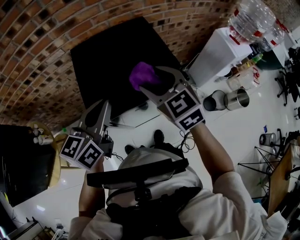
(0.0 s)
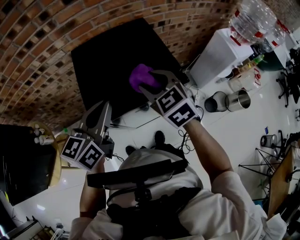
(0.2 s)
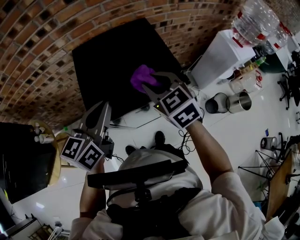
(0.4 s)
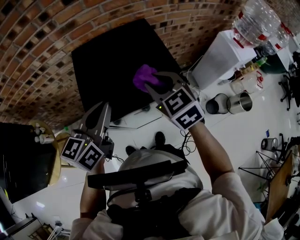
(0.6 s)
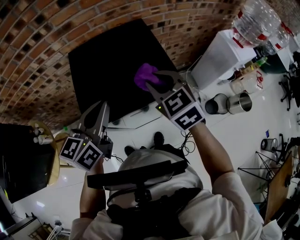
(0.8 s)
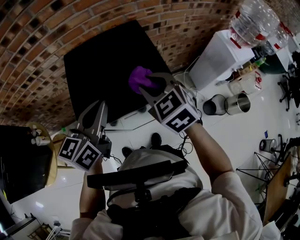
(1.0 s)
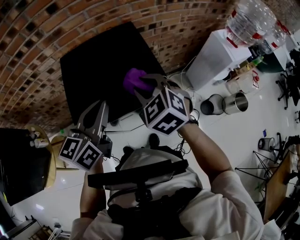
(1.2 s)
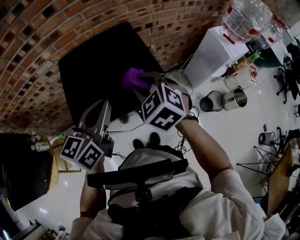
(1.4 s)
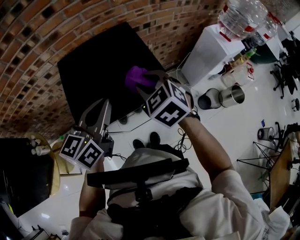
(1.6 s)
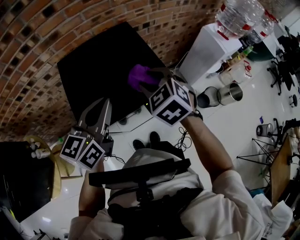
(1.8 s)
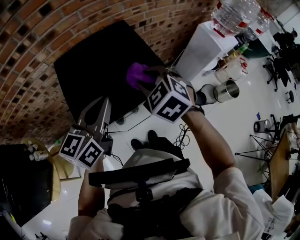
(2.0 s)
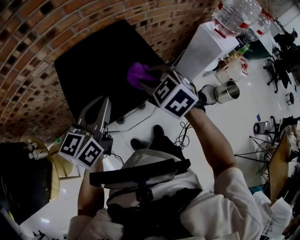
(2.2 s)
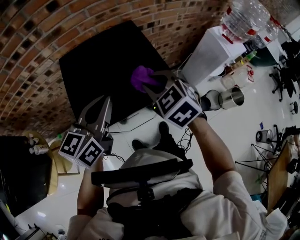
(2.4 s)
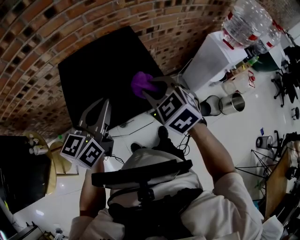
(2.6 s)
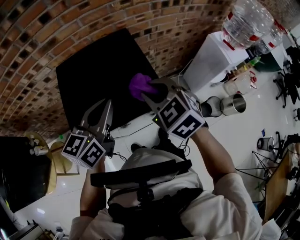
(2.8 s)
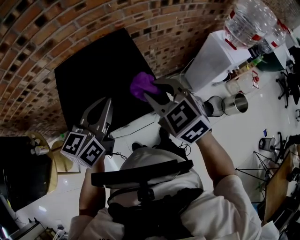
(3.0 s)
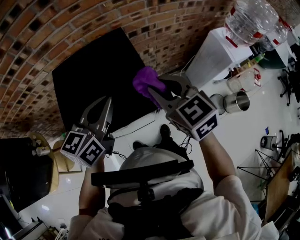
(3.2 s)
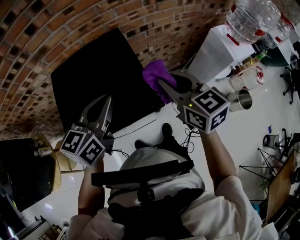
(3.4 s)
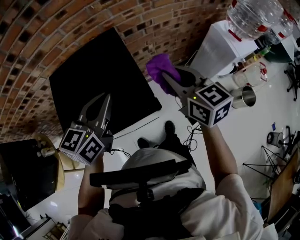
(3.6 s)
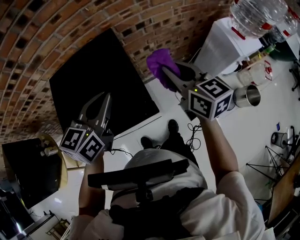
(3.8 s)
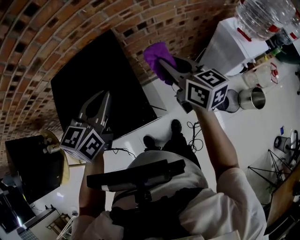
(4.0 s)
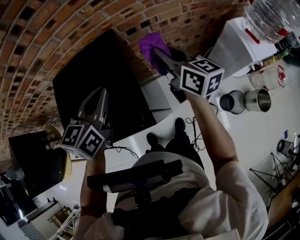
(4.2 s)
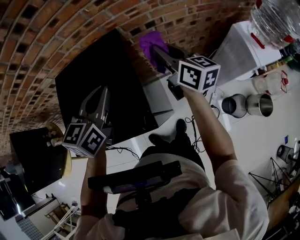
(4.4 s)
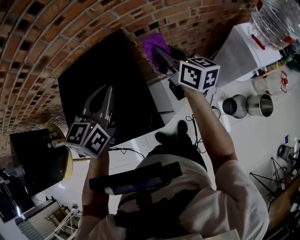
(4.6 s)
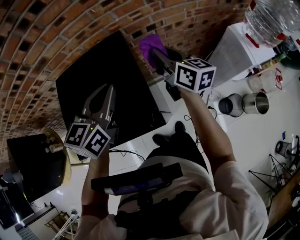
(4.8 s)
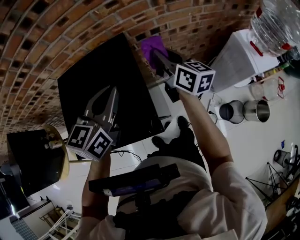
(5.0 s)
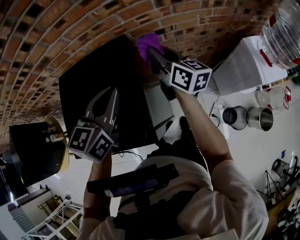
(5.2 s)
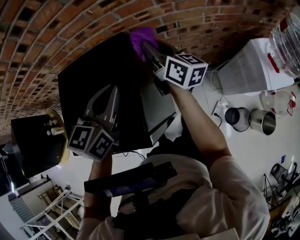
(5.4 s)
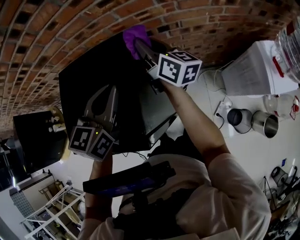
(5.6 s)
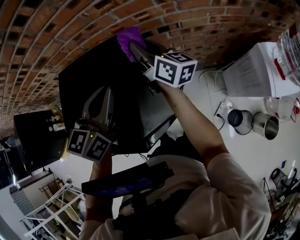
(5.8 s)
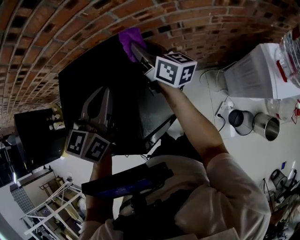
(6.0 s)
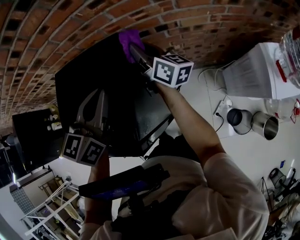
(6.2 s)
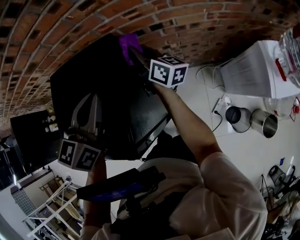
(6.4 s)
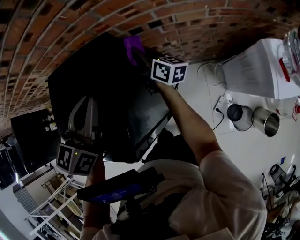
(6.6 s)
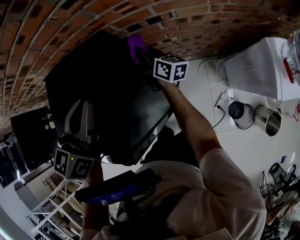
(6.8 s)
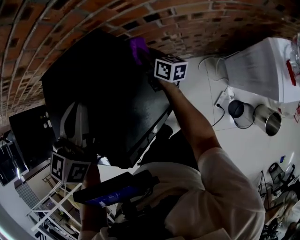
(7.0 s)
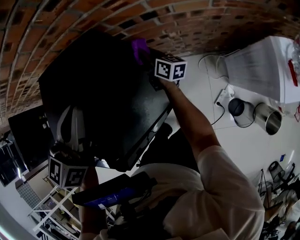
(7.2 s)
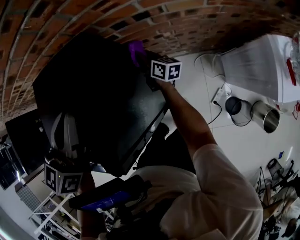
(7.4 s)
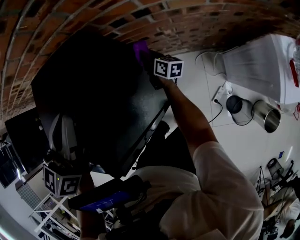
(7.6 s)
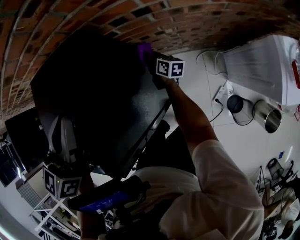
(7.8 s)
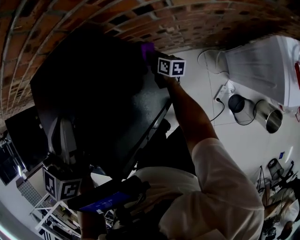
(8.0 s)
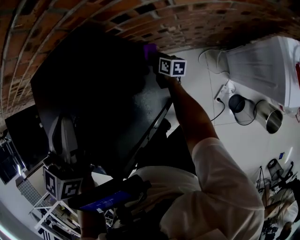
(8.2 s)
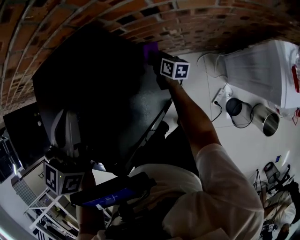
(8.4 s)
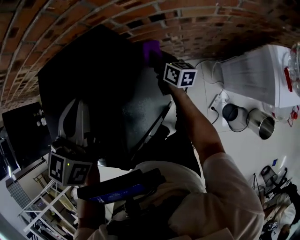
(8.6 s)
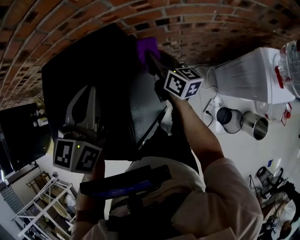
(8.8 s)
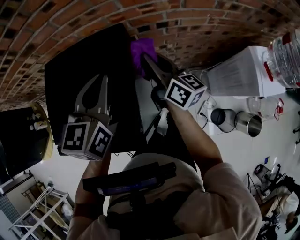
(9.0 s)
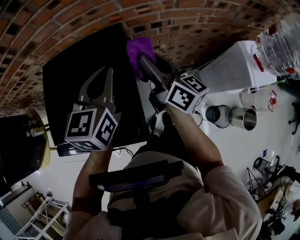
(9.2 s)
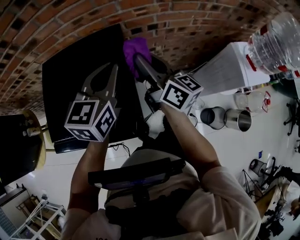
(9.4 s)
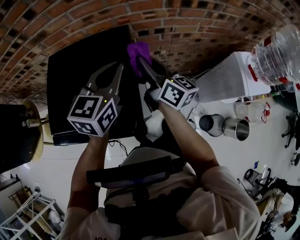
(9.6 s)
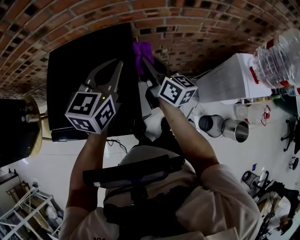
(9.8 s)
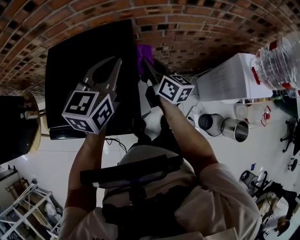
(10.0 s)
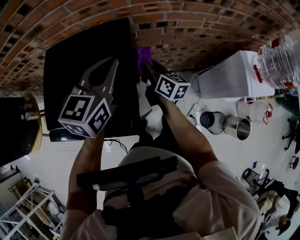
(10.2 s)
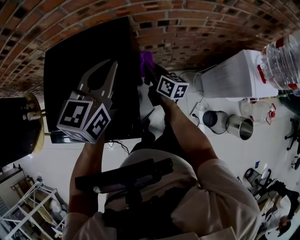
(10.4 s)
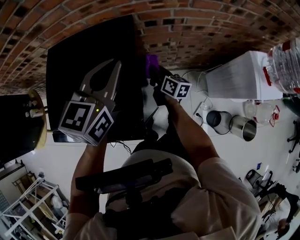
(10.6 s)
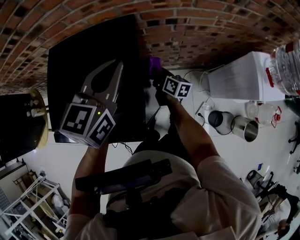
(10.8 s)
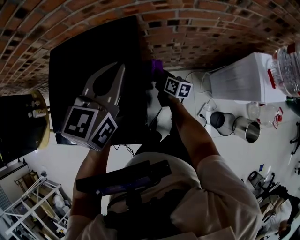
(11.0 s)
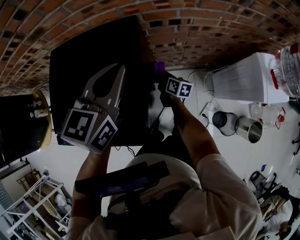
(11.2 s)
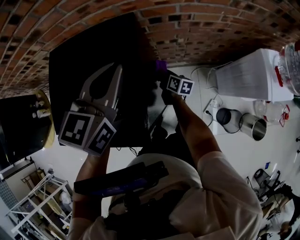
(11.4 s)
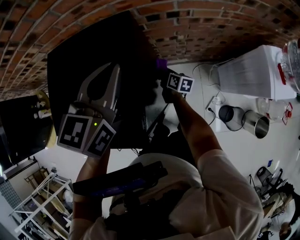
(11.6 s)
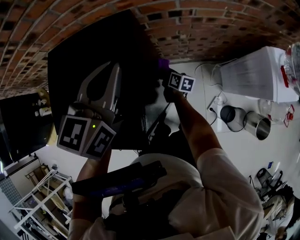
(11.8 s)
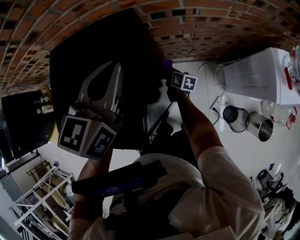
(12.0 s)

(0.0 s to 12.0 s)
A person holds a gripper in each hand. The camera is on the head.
0.0 s - 1.6 s: The right gripper shifts by some 5 cm, and closes its fingers. The left gripper shifts about 5 cm to the right.
1.6 s - 3.0 s: The left gripper moves roughly 5 cm. Meanwhile the right gripper shifts by approximately 5 cm.
3.0 s - 4.4 s: The right gripper shifts roughly 25 cm forward and to the right, and rotates around the line of its fingers by about 50 degrees, clockwise from behind. The left gripper moves forward and to the right, roughly 10 cm.
4.4 s - 6.0 s: The left gripper moves roughly 5 cm. Meanwhile the right gripper heads forward and to the left, covering about 15 cm.
6.0 s - 7.6 s: The right gripper heads downward, covering roughly 30 cm, and swivels roughly 20 degrees.
7.6 s - 9.0 s: The right gripper shifts roughly 30 cm upward, and changes its angle by approximately 20 degrees.
9.0 s - 10.4 s: The right gripper shifts roughly 15 cm downward.
10.4 s - 12.0 s: The right gripper heads downward, covering about 20 cm, and changes its angle by approximately 20 degrees.

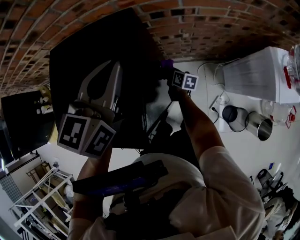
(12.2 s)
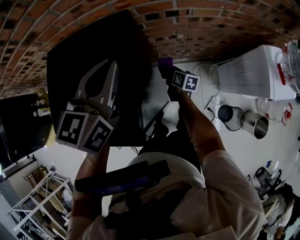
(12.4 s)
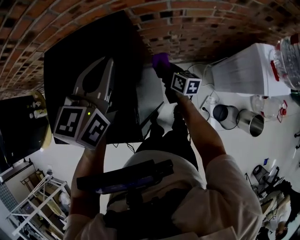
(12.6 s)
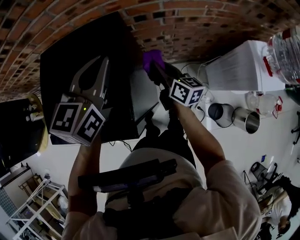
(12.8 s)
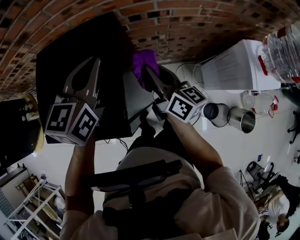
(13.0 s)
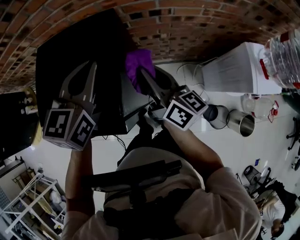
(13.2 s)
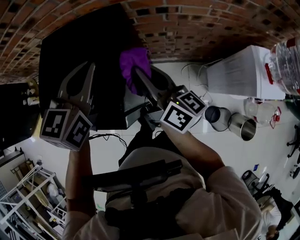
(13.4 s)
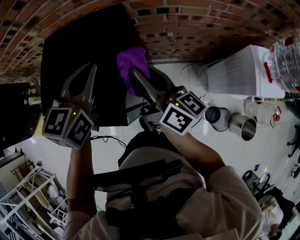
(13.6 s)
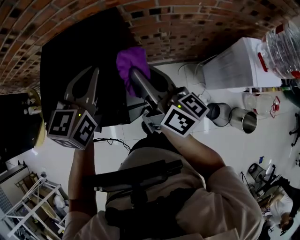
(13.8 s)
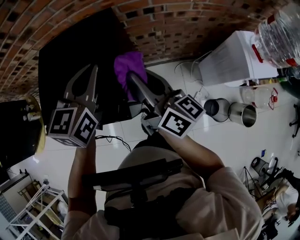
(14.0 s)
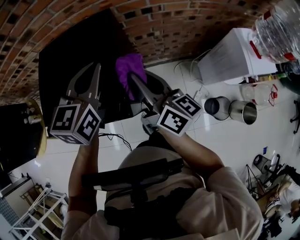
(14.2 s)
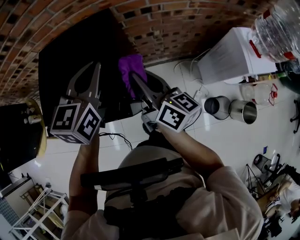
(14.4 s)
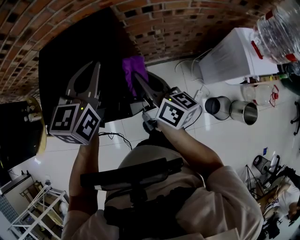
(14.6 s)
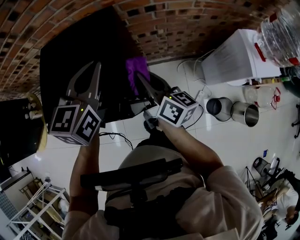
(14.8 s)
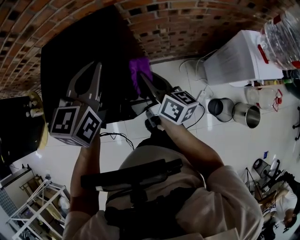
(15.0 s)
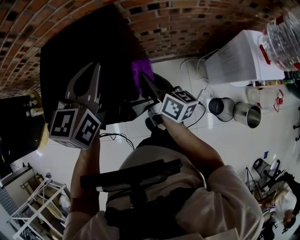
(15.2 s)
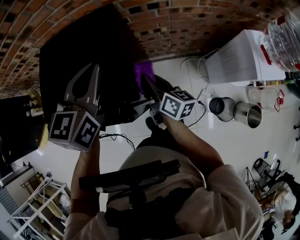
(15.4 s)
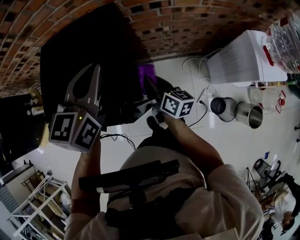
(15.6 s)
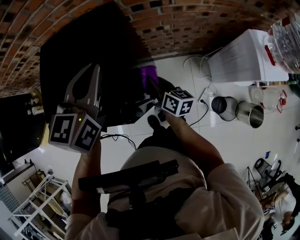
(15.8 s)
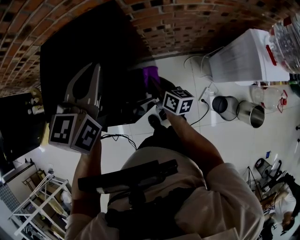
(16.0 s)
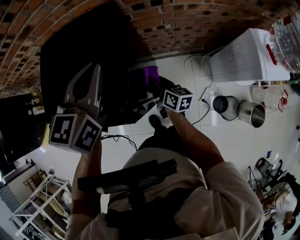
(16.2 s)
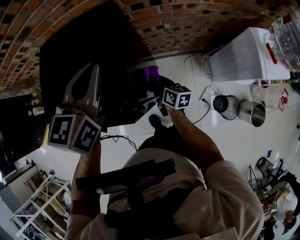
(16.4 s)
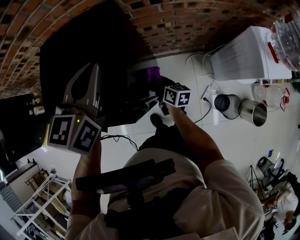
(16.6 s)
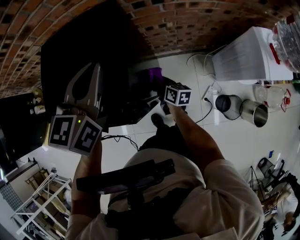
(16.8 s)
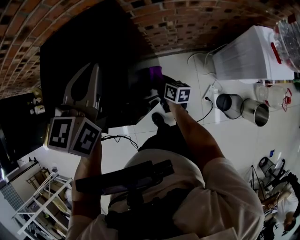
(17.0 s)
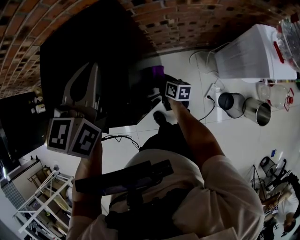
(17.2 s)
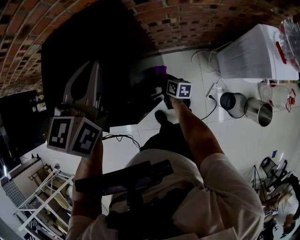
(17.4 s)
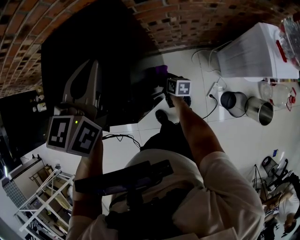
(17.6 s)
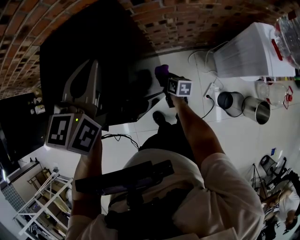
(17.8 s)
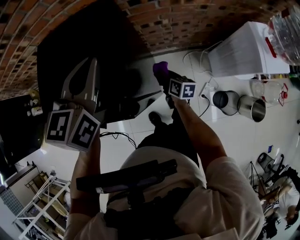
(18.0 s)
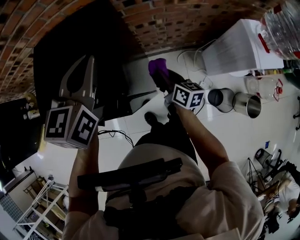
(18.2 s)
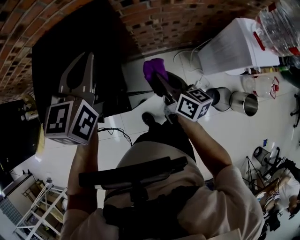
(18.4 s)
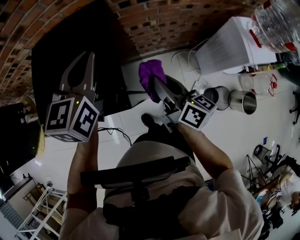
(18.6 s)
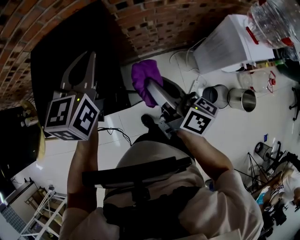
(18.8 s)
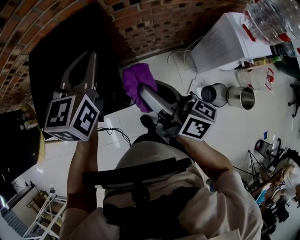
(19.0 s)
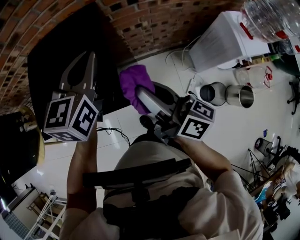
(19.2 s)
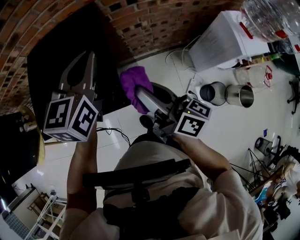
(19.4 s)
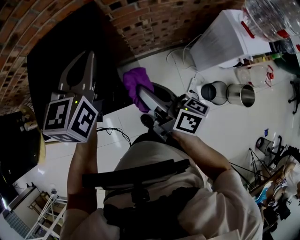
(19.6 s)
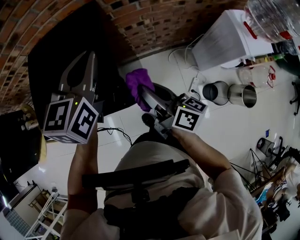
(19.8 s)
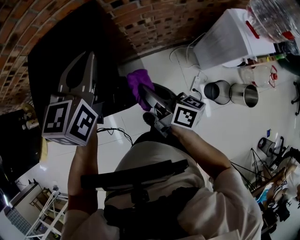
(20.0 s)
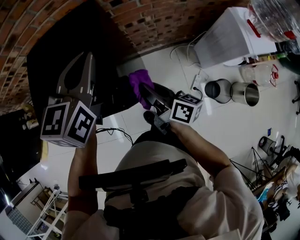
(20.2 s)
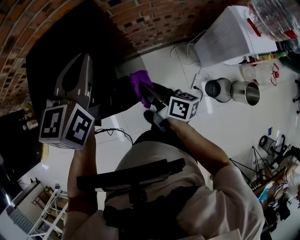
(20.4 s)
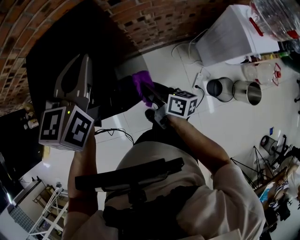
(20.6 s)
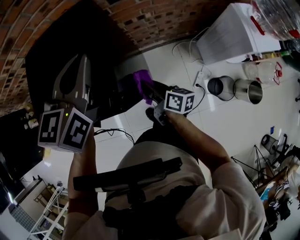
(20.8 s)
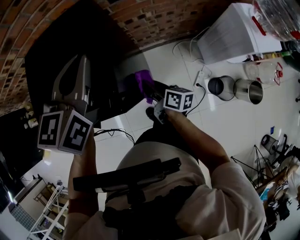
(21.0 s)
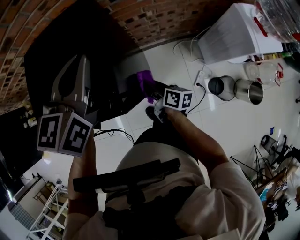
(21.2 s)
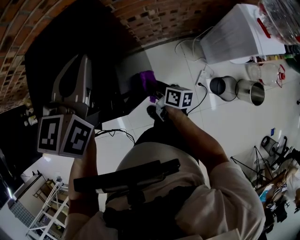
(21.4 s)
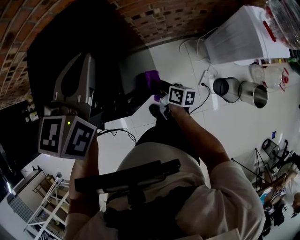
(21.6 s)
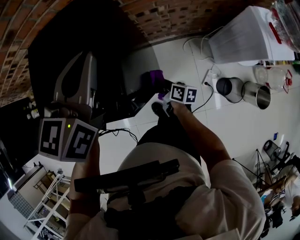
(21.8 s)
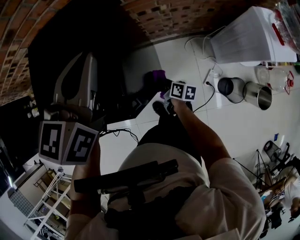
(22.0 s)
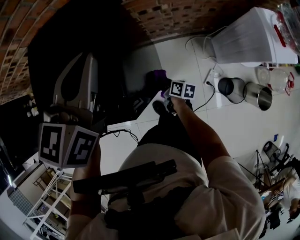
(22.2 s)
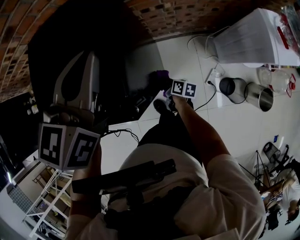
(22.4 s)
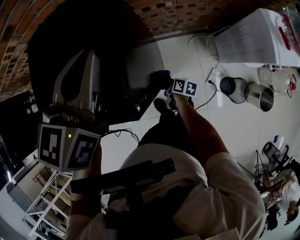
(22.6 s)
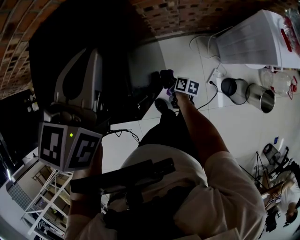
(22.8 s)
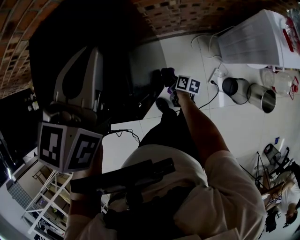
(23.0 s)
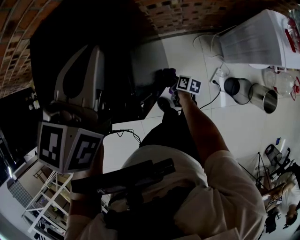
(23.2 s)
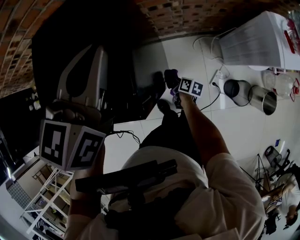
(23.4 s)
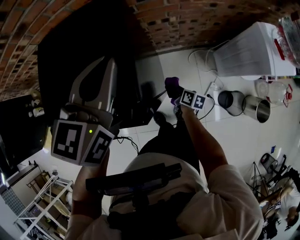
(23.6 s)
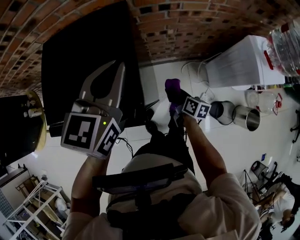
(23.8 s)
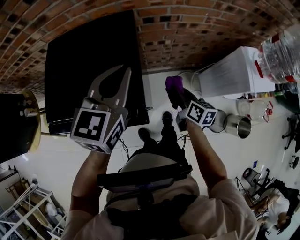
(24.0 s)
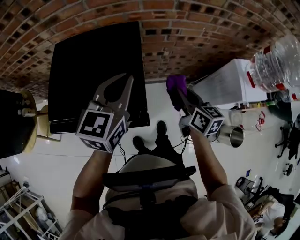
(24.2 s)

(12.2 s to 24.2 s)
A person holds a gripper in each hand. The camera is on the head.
12.2 s - 13.8 s: The right gripper travels upward by about 40 cm, and tilts its fingers about 40 degrees upward. The left gripper shifts approximately 5 cm backward.
13.8 s - 15.2 s: The right gripper heads downward, covering some 15 cm.
15.2 s - 16.6 s: The right gripper is displaced downward by approximately 20 cm.
16.6 s - 18.2 s: The right gripper moves upward and to the right, some 10 cm.
18.2 s - 19.8 s: The right gripper goes approximately 15 cm upward and backward, and swivels some 20 degrees.
19.8 s - 21.2 s: The right gripper travels downward by some 20 cm, and turns by approximately 20 degrees.
21.2 s - 22.6 s: The right gripper goes approximately 20 cm downward, and changes its angle by roughly 20 degrees.
22.6 s - 24.2 s: The right gripper heads upward, covering some 40 cm, and changes its angle by some 50 degrees.
